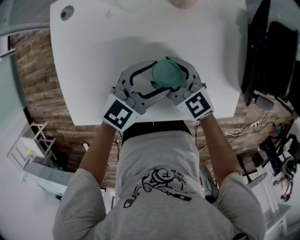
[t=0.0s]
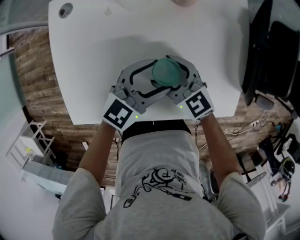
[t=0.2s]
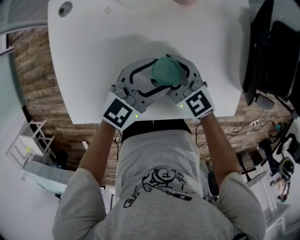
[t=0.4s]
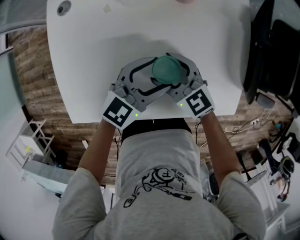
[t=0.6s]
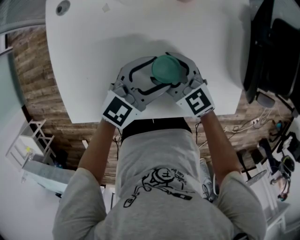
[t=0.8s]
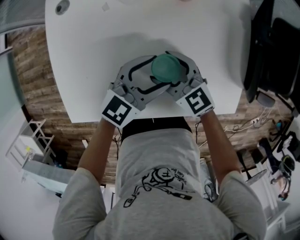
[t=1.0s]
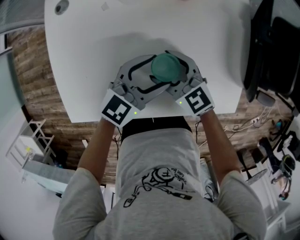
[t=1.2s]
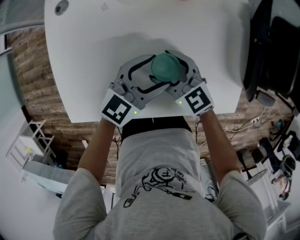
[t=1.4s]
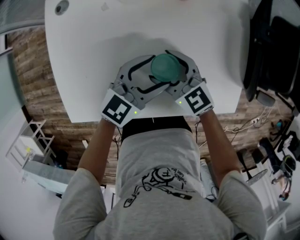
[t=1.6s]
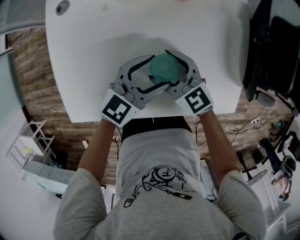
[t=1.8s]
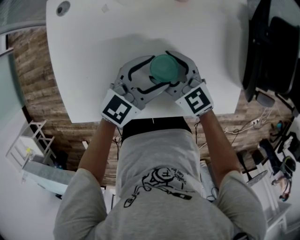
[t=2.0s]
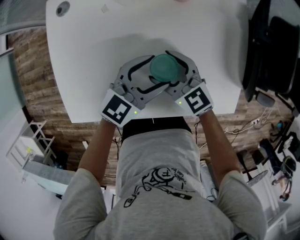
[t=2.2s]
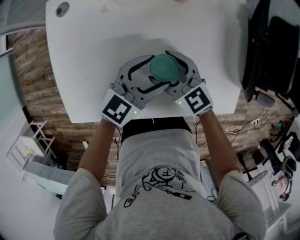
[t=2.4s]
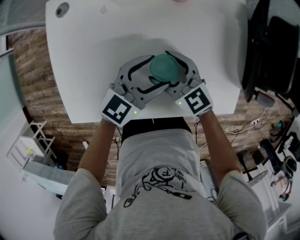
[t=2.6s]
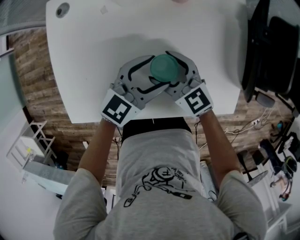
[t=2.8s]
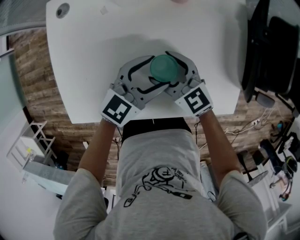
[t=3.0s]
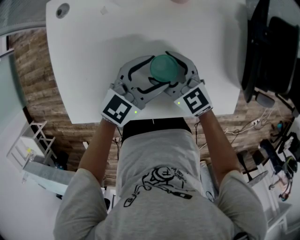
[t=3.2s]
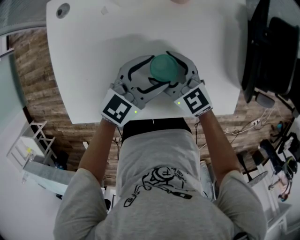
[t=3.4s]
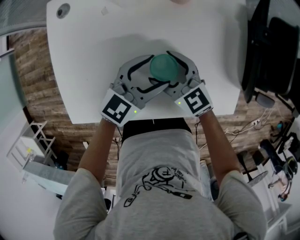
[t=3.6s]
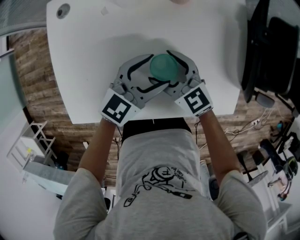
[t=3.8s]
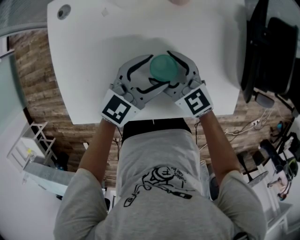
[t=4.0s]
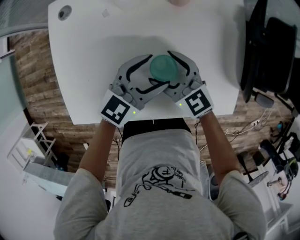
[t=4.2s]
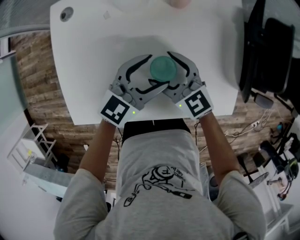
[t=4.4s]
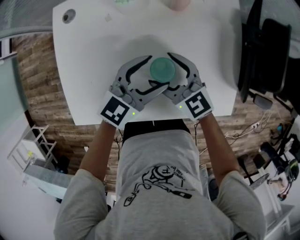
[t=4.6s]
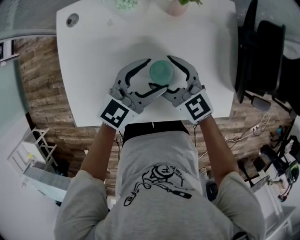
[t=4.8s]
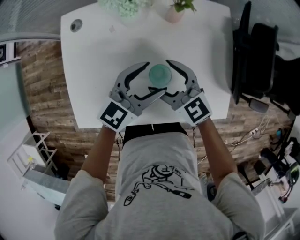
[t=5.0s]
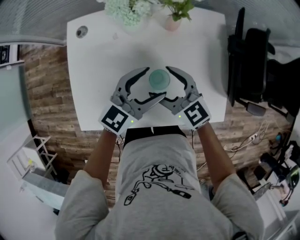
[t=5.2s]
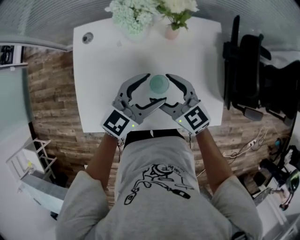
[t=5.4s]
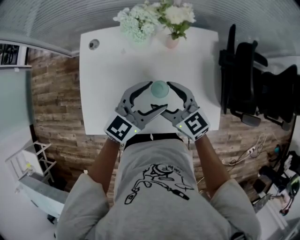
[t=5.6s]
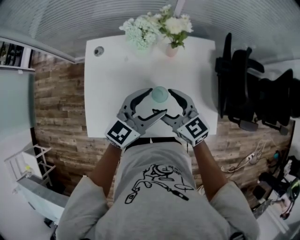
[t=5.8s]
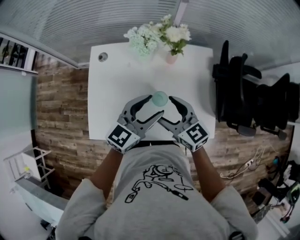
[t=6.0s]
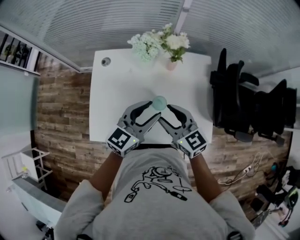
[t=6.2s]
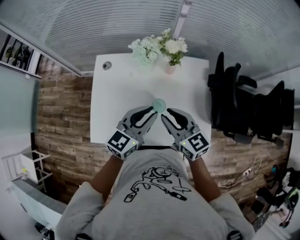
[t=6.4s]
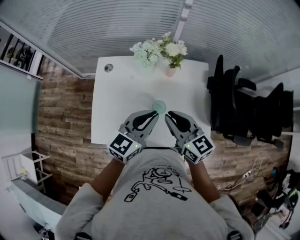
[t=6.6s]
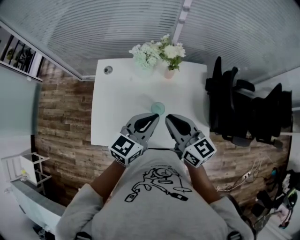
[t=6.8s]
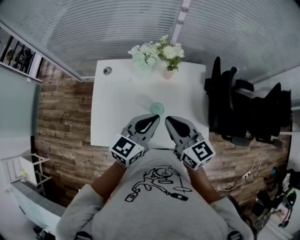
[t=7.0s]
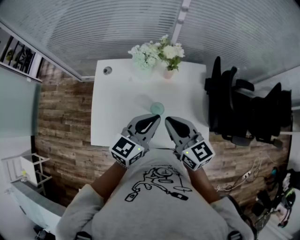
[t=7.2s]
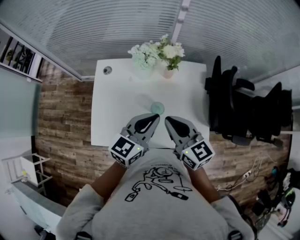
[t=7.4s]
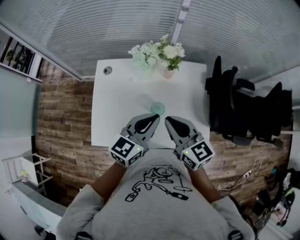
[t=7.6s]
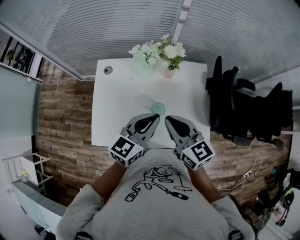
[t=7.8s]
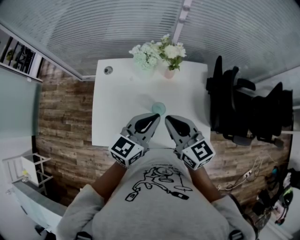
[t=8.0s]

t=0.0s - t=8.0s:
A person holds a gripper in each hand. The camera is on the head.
t=0.0s - t=1.6s: There are only small adjustments of the grippers.
t=1.6s - t=3.2s: The two grippers keep their place.
t=3.2s - t=4.8s: Both grippers travel together upward, about 5 cm.
t=4.8s - t=6.4s: The two grippers go roughly 20 cm upward. The right gripper closes. Meanwhile the left gripper closes up.
t=6.4s - t=8.0s: The right gripper shifts roughly 5 cm upward.

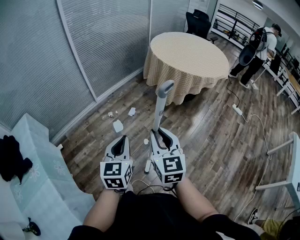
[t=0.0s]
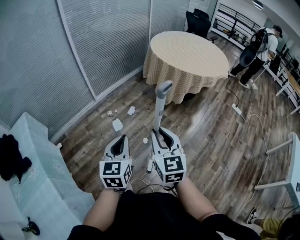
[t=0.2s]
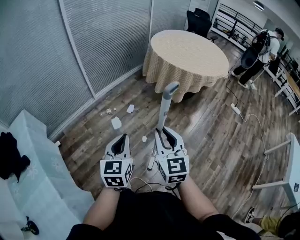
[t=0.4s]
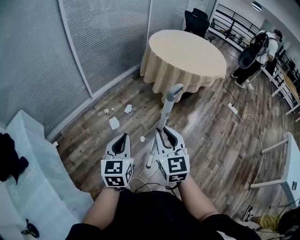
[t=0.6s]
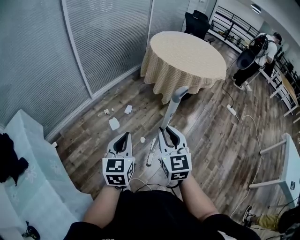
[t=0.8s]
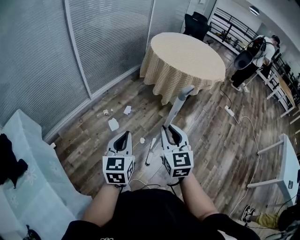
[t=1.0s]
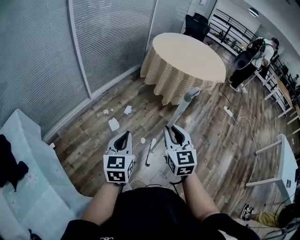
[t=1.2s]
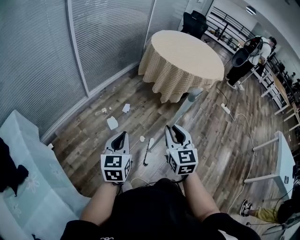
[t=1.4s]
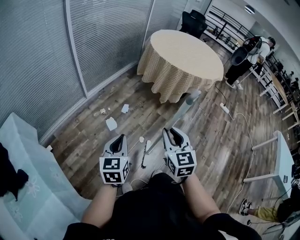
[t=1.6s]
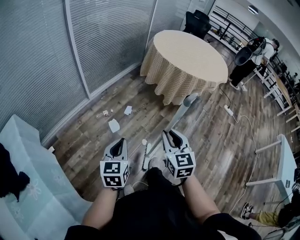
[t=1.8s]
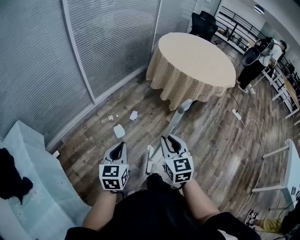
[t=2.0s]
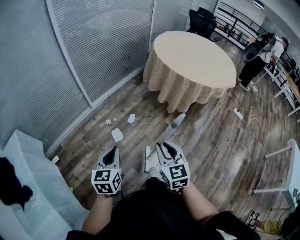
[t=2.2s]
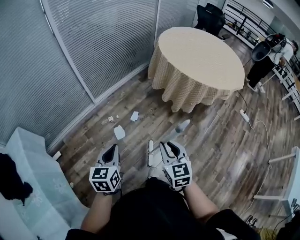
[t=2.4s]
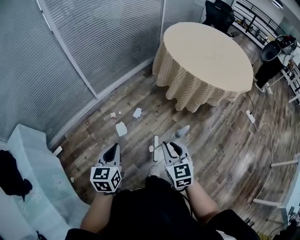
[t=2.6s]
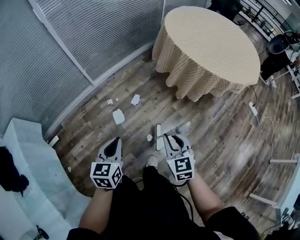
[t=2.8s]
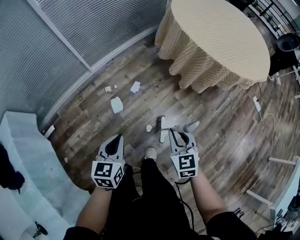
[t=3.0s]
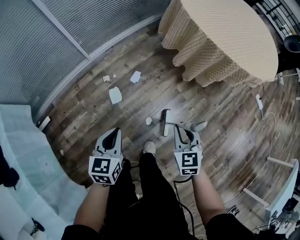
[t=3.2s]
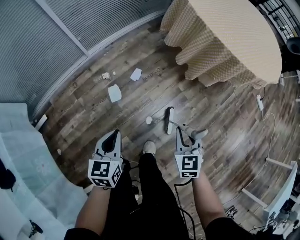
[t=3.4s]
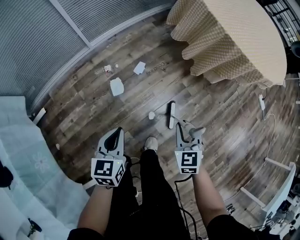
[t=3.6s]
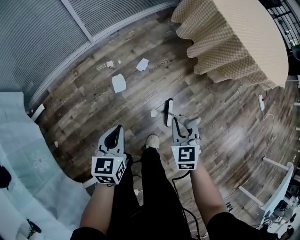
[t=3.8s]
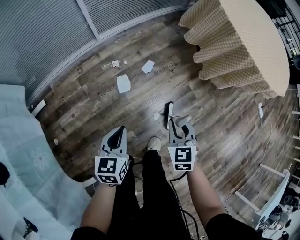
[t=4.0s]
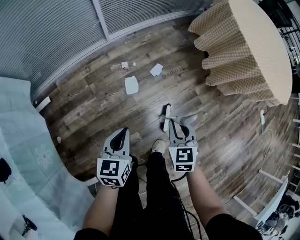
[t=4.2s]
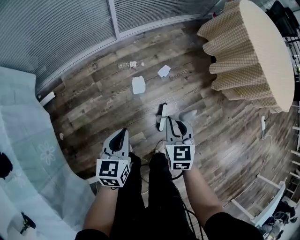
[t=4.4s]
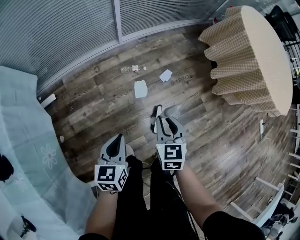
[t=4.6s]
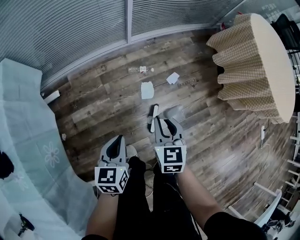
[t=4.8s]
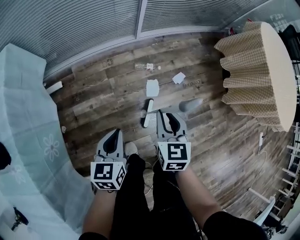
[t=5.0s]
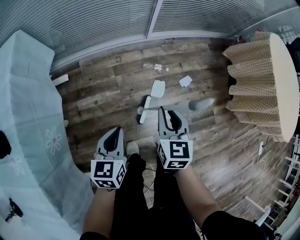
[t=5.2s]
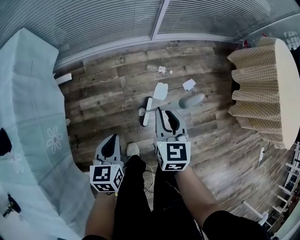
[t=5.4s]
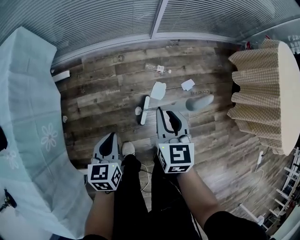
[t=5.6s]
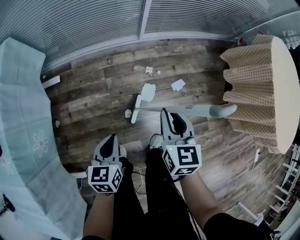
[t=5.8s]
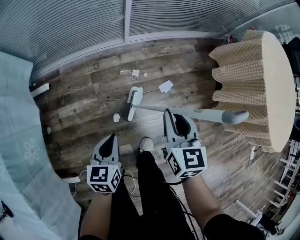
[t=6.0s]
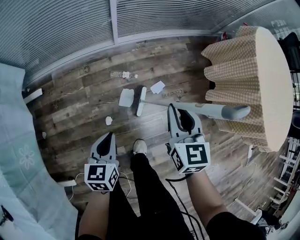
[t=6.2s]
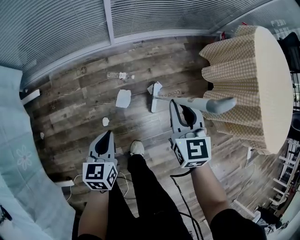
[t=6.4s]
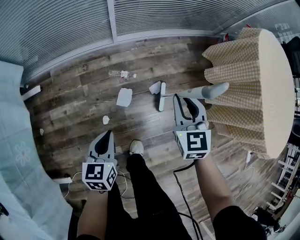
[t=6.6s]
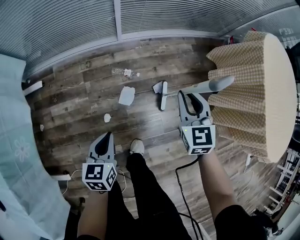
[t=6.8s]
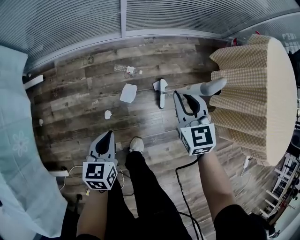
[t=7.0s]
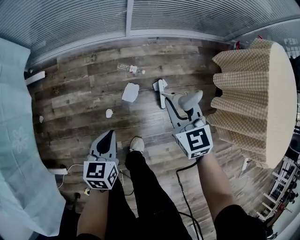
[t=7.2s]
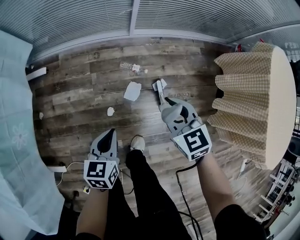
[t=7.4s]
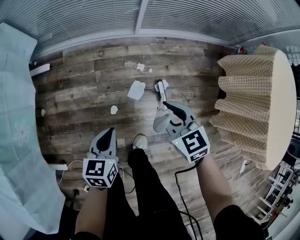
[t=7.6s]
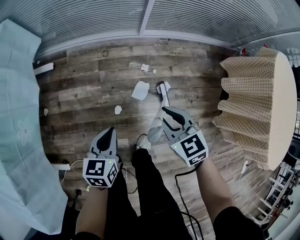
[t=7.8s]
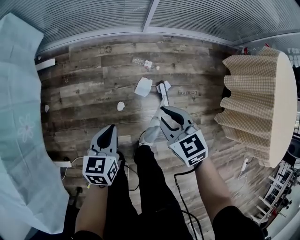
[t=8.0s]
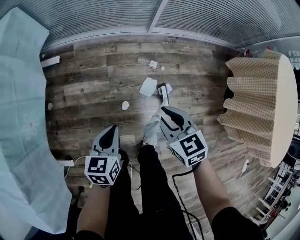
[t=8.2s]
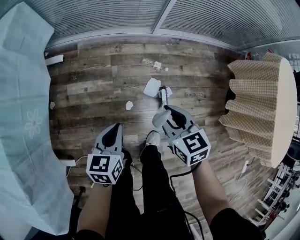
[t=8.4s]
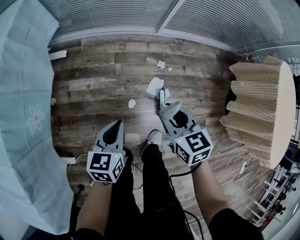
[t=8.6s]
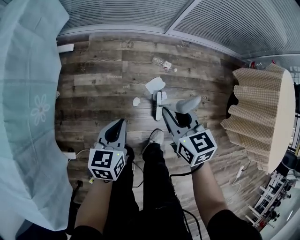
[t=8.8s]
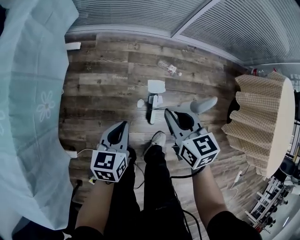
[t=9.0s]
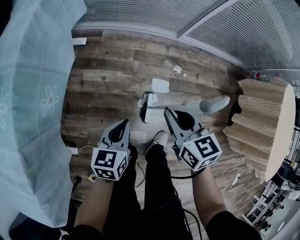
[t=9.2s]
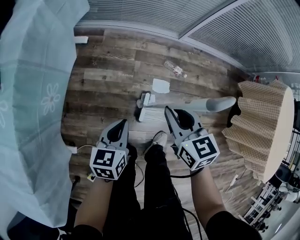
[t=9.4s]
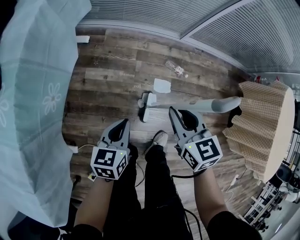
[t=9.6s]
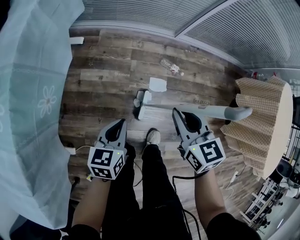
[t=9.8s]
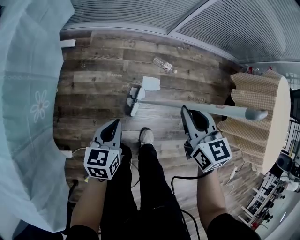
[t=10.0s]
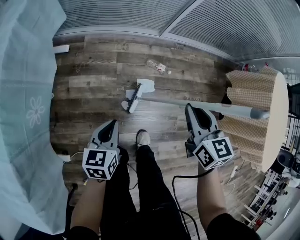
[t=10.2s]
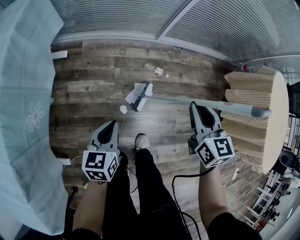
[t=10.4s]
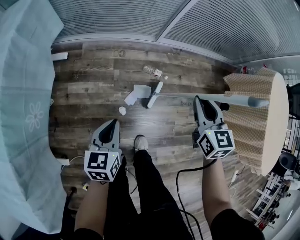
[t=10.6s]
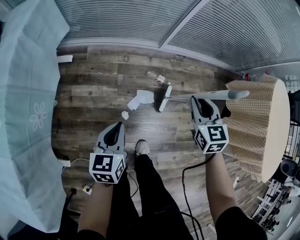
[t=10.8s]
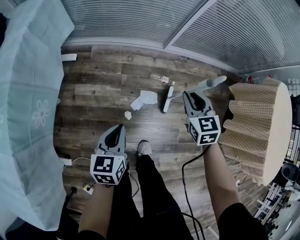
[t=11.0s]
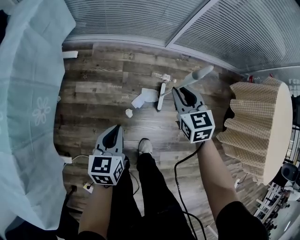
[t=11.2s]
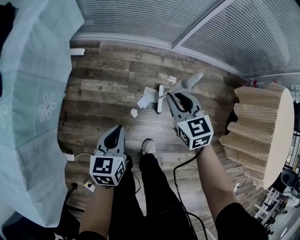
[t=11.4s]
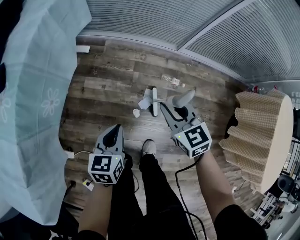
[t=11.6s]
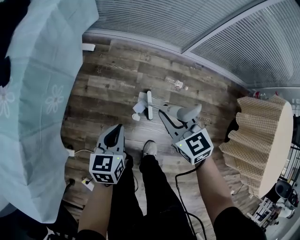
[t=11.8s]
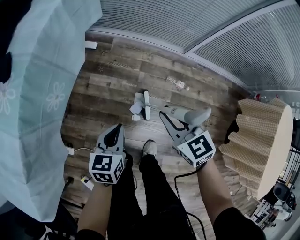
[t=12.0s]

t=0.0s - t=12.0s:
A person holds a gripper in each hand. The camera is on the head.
t=0.0s - t=1.6s: The right gripper travels to the left by approximately 10 cm, while the left gripper shifts approximately 15 cm to the left and downward.
t=1.6s - t=3.0s: The two grippers go about 30 cm forward, downward and to the right. The right gripper rotates about 20 degrees.
t=3.0s - t=4.4s: Both grippers travel together to the left and downward, about 25 cm.
t=4.4s - t=6.0s: The left gripper goes approximately 10 cm forward and downward, and travels to the left and back again, roughly 20 cm each way, while the right gripper shifts roughly 15 cm forward, and goes to the left and returns, about 20 cm each way.
t=6.0s - t=7.6s: The left gripper goes to the right and returns, some 10 cm each way. The right gripper goes approximately 5 cm downward, travels to the right and back again, approximately 10 cm each way, and turns by some 40 degrees.
t=7.6s - t=9.0s: Both grippers move to the left, some 20 cm.
t=9.0s - t=10.4s: The right gripper moves to the right and upward, some 15 cm.
t=10.4s - t=12.0s: The right gripper changes place by some 20 cm, and changes its angle by about 40 degrees. The left gripper shifts by roughly 10 cm.

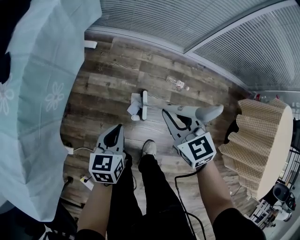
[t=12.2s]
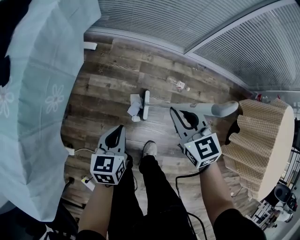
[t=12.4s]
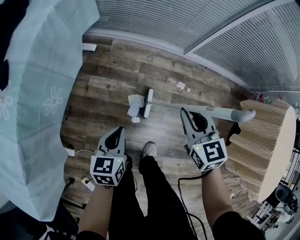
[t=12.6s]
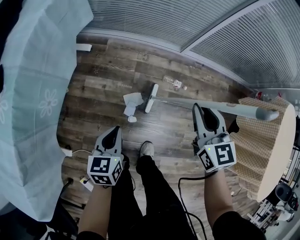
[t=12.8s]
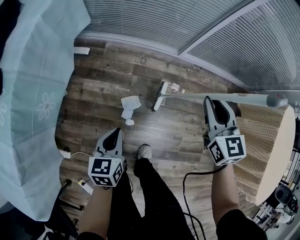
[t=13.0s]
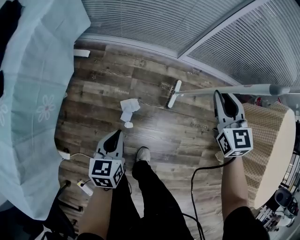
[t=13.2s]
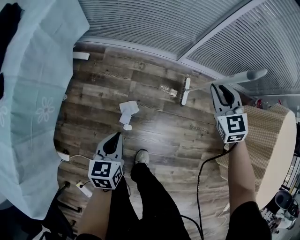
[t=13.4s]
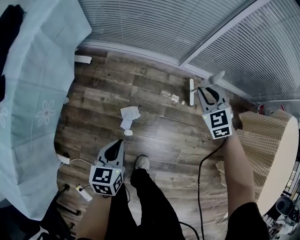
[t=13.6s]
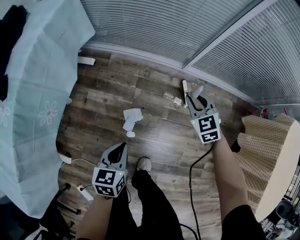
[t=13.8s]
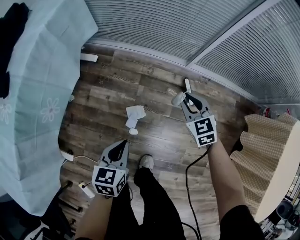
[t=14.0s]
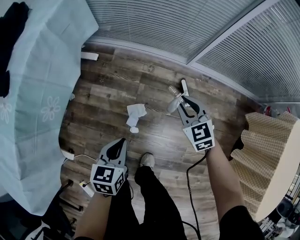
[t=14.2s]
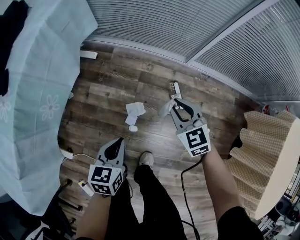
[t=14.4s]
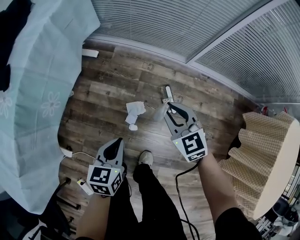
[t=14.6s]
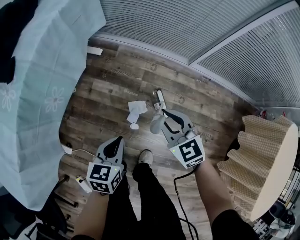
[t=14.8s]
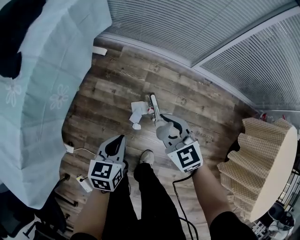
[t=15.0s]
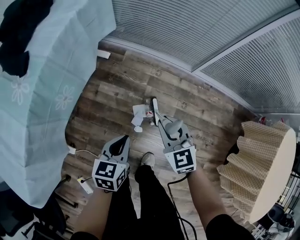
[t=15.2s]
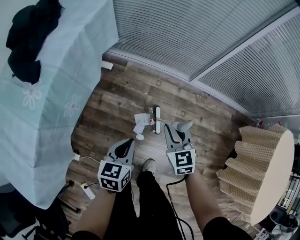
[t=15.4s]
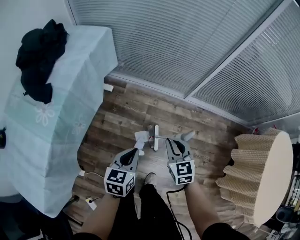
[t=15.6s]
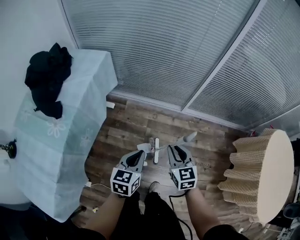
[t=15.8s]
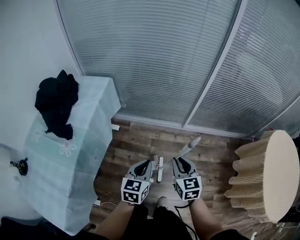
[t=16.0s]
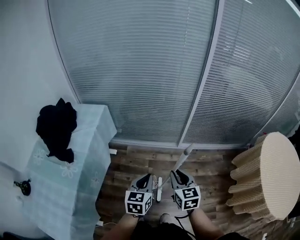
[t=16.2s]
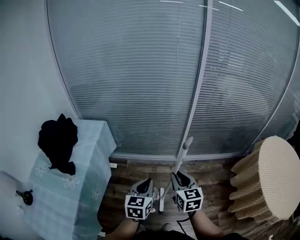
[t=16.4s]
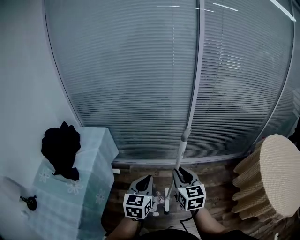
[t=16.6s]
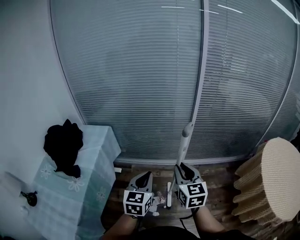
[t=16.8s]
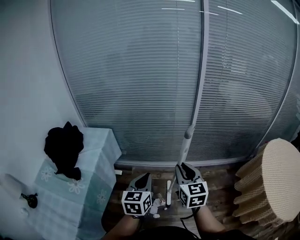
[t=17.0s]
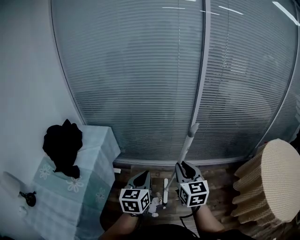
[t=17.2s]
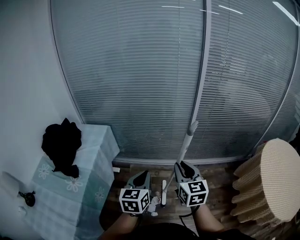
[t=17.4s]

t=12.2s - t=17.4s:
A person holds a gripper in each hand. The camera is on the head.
t=12.2s - t=14.0s: The left gripper heads to the right, covering approximately 10 cm, while the right gripper goes roughly 25 cm to the right, forward and downward.
t=14.0s - t=15.6s: The left gripper shifts roughly 15 cm upward and to the left, while the right gripper shifts about 25 cm upward, to the left and backward.
t=15.6s - t=17.4s: The two grippers go about 30 cm upward. The right gripper changes its angle by approximately 30 degrees.
